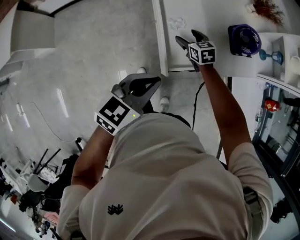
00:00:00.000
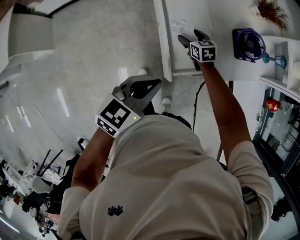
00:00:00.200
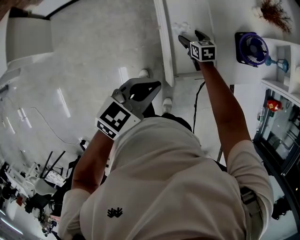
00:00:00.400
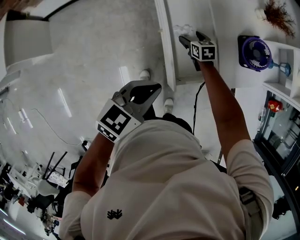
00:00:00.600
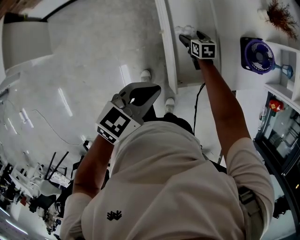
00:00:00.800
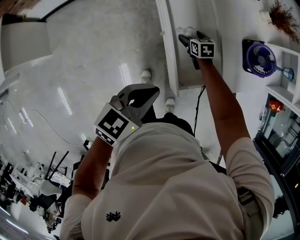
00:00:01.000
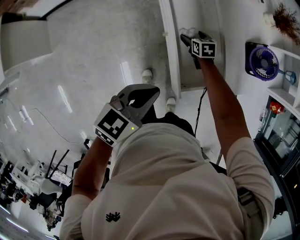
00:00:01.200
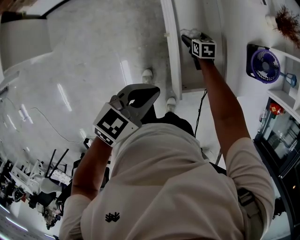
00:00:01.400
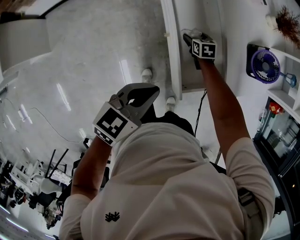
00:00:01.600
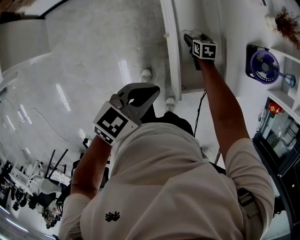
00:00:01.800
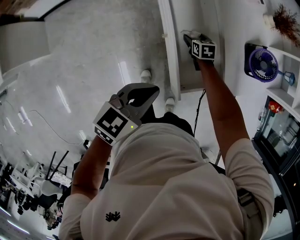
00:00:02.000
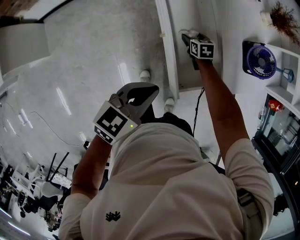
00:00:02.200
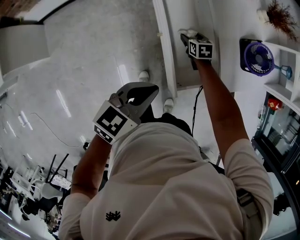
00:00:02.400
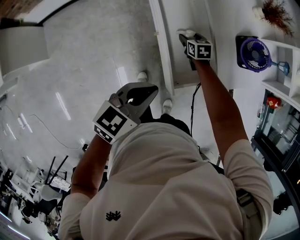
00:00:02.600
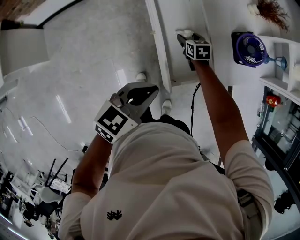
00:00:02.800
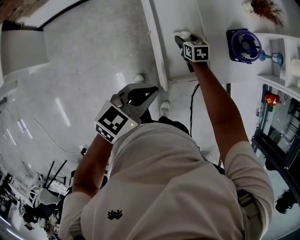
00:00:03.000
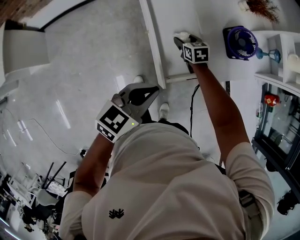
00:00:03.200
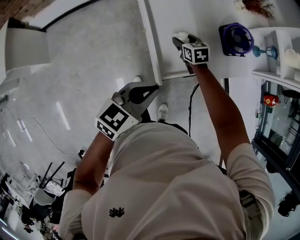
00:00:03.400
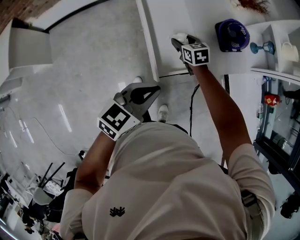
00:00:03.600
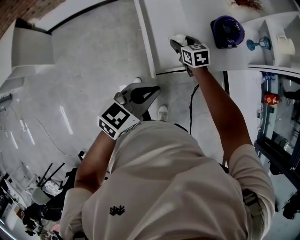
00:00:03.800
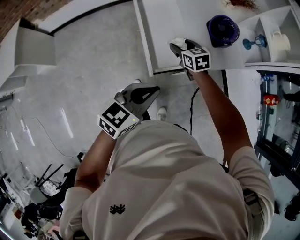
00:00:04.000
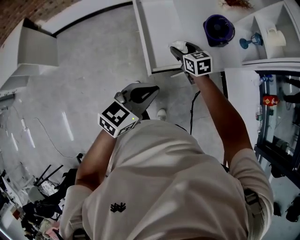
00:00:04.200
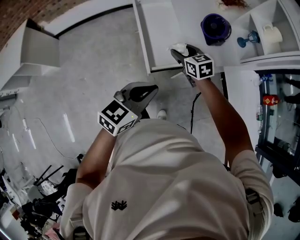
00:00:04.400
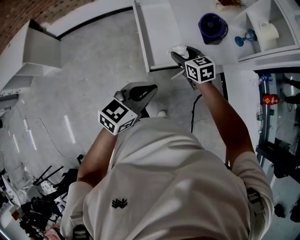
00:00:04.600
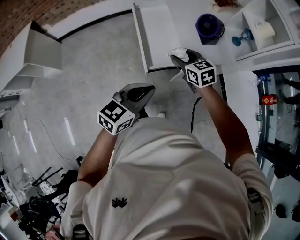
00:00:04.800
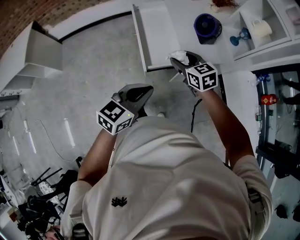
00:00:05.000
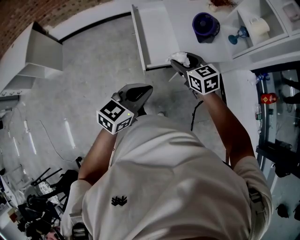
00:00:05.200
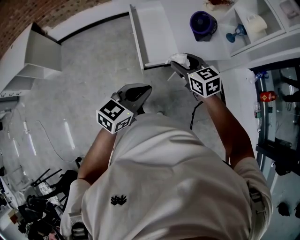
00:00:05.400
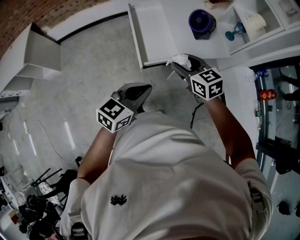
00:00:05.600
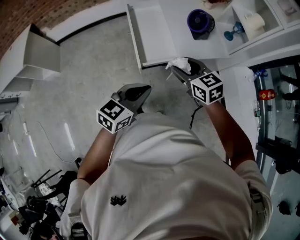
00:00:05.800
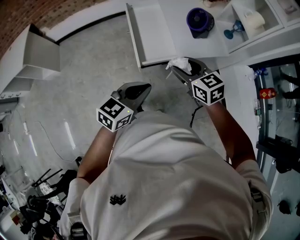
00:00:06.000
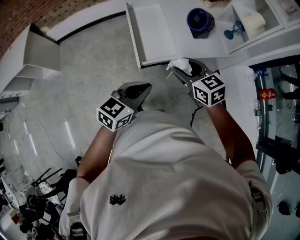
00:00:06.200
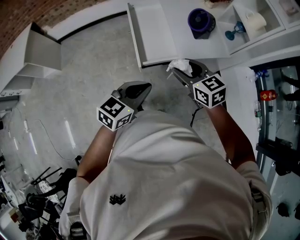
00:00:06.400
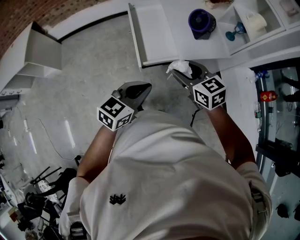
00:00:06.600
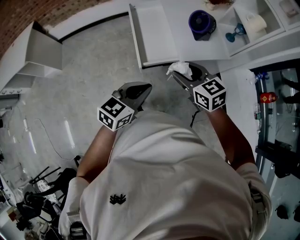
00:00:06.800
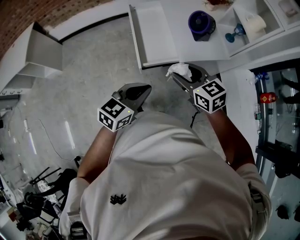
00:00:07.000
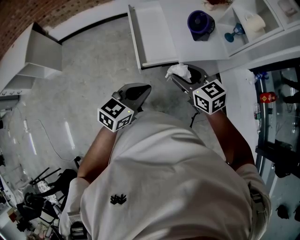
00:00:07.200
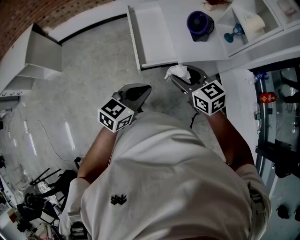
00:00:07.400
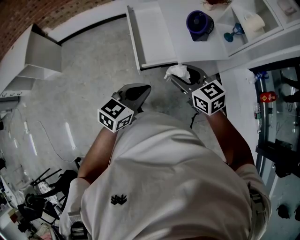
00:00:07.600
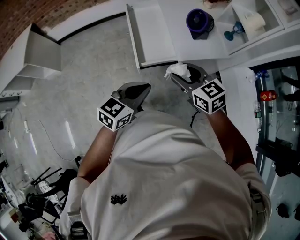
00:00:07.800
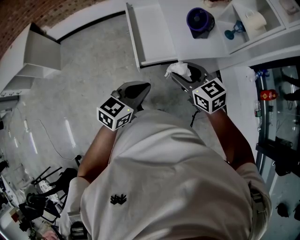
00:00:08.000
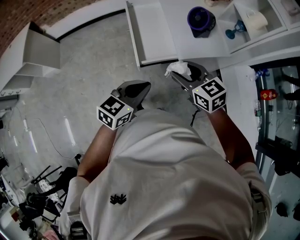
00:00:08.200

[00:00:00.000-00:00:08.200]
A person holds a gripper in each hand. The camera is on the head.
00:00:00.000 to 00:00:01.600: The right gripper goes approximately 20 cm downward and forward, and swivels roughly 20 degrees. Meanwhile the left gripper heads to the left, forward and downward, covering some 15 cm.
00:00:01.600 to 00:00:03.200: The right gripper shifts roughly 15 cm upward, backward and to the right, while the left gripper is displaced to the right by about 10 cm.
00:00:03.200 to 00:00:05.000: The right gripper shifts roughly 35 cm backward, upward and to the right, and swivels about 20 degrees; the left gripper is displaced backward, to the right and upward by about 20 cm.
00:00:05.000 to 00:00:06.600: The right gripper travels backward by roughly 10 cm.
00:00:06.600 to 00:00:08.200: The grippers make only small movements.

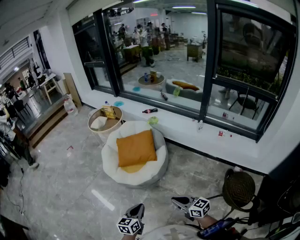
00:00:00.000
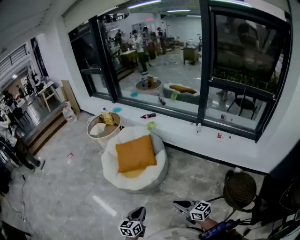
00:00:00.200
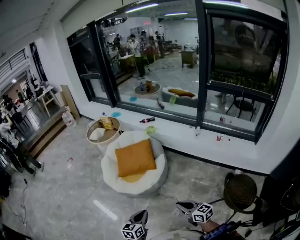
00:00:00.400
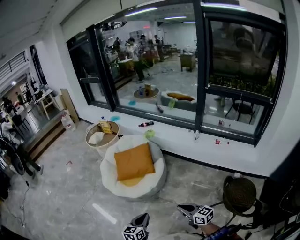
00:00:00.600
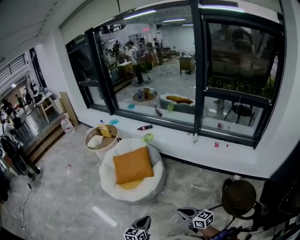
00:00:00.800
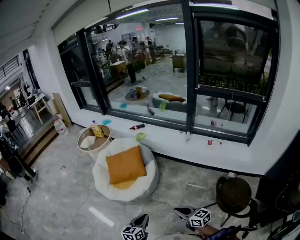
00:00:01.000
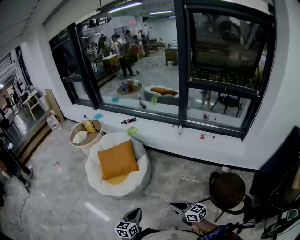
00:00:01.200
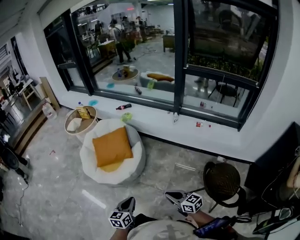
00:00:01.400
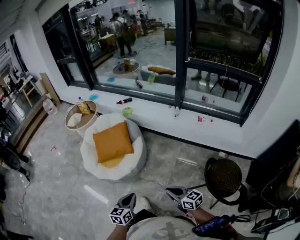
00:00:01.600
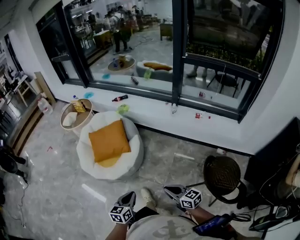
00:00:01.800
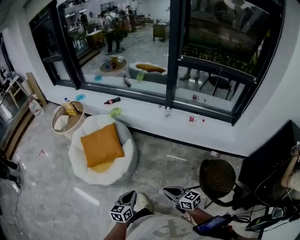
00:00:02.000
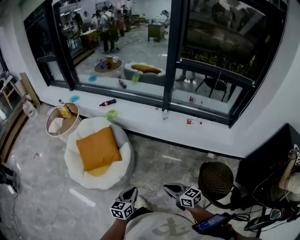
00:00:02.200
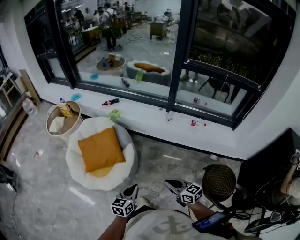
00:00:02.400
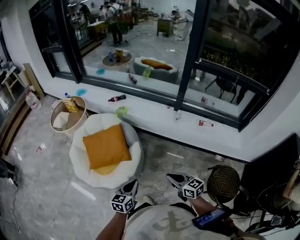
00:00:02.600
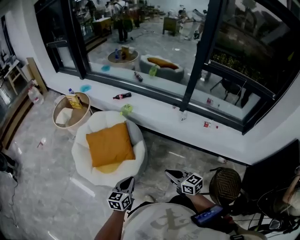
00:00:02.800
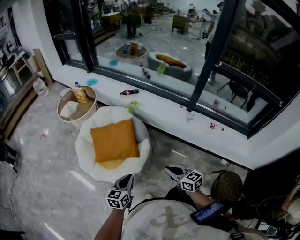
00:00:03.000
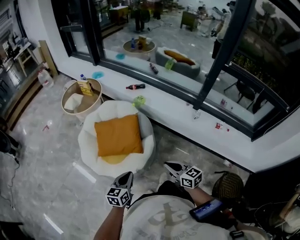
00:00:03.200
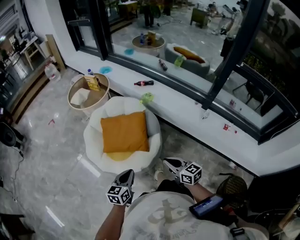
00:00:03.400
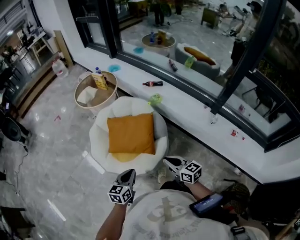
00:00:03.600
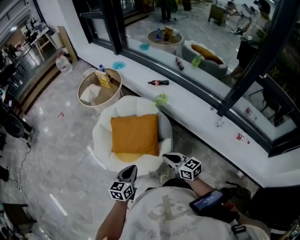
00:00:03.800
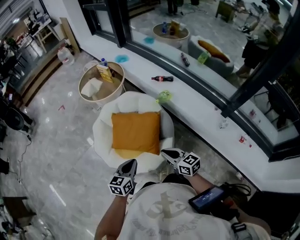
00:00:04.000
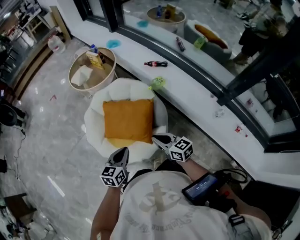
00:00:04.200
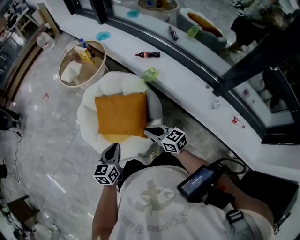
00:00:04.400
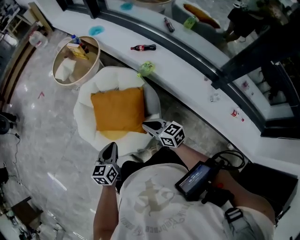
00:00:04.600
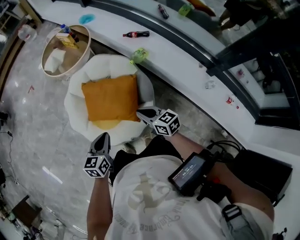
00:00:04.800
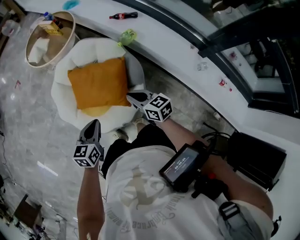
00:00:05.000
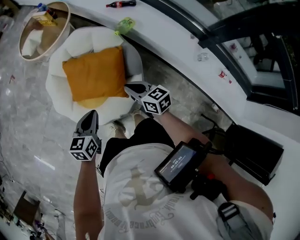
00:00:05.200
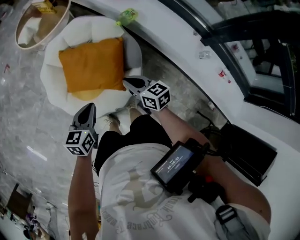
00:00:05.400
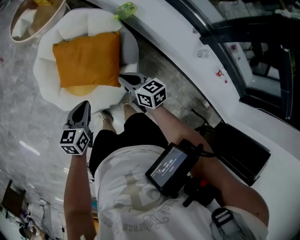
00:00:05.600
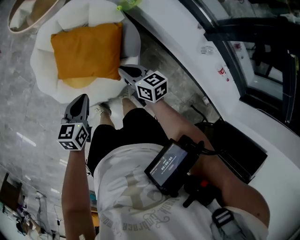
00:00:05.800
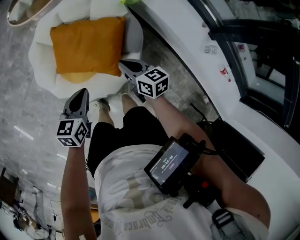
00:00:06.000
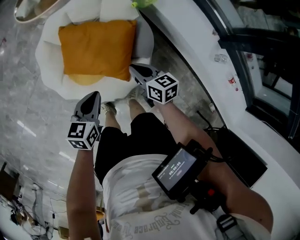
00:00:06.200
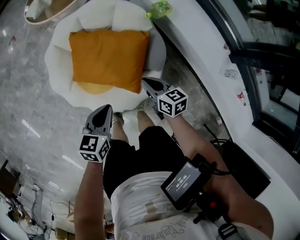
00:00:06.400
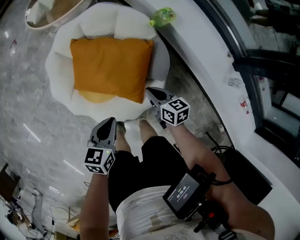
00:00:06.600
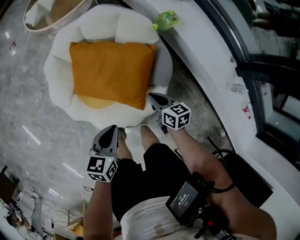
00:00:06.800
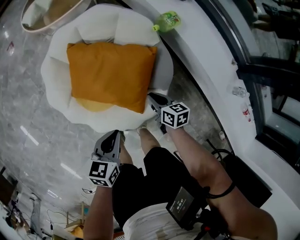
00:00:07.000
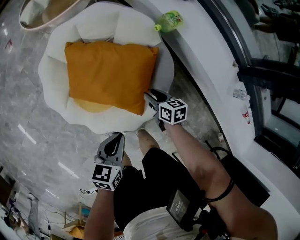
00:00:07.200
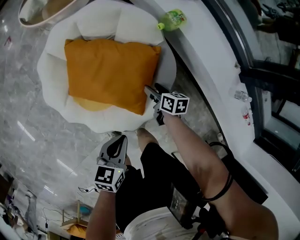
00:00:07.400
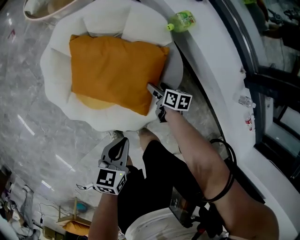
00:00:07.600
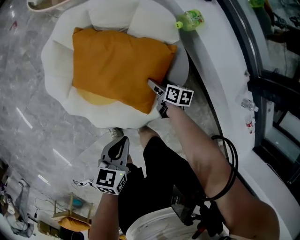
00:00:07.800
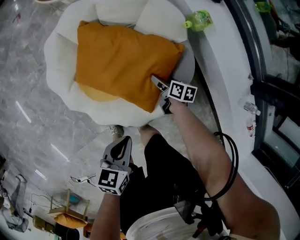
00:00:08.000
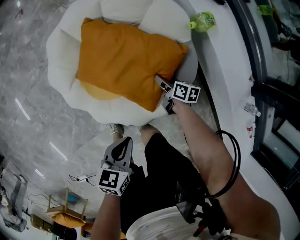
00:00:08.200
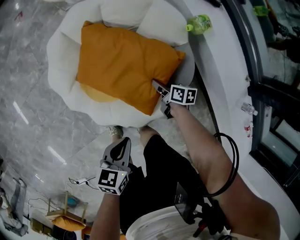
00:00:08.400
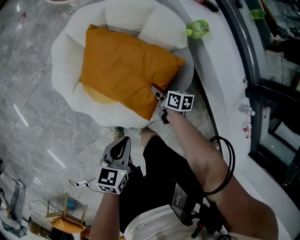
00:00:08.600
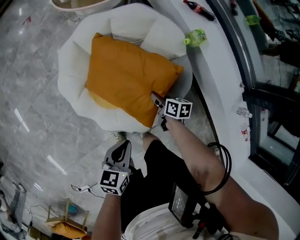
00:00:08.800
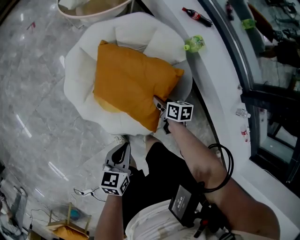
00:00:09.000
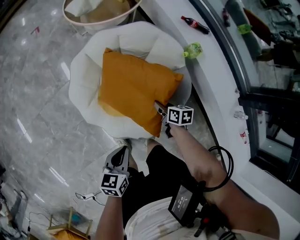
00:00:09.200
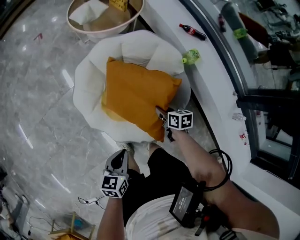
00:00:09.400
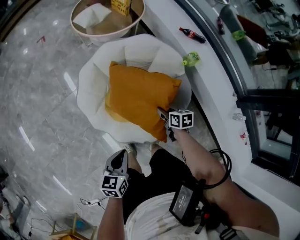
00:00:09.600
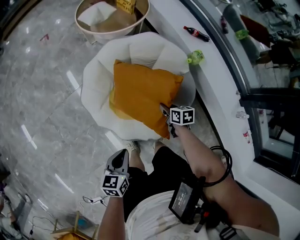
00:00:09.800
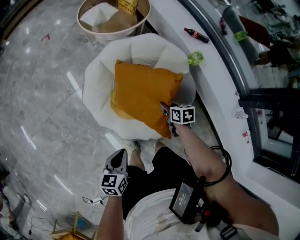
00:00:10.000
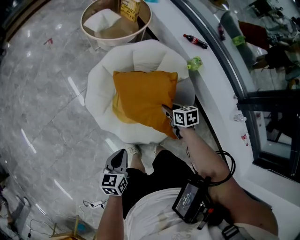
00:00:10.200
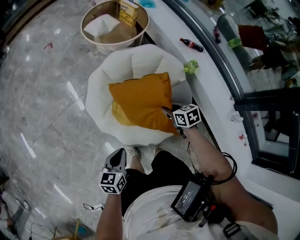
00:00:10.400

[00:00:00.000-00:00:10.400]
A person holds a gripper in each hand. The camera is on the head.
00:00:00.000 to 00:00:01.400: Both grippers travel together to the right, approximately 15 cm.
00:00:01.400 to 00:00:03.000: Both grippers move forward, roughly 30 cm.
00:00:03.000 to 00:00:04.400: The two grippers go roughly 25 cm forward. The left gripper turns by approximately 20 degrees. The right gripper rotates some 20 degrees.
00:00:04.400 to 00:00:06.000: The right gripper heads downward and forward, covering approximately 15 cm, while the left gripper goes roughly 10 cm downward.
00:00:06.000 to 00:00:07.400: The left gripper is displaced downward by approximately 10 cm, while the right gripper shifts some 25 cm downward, changes its angle by some 20 degrees, and opens.
00:00:07.400 to 00:00:09.000: The left gripper travels to the left by about 10 cm; the right gripper moves to the left and upward, approximately 10 cm, and closes.
00:00:09.000 to 00:00:10.400: The left gripper travels to the left and upward by about 15 cm, while the right gripper goes roughly 20 cm upward and to the left, and swivels roughly 30 degrees.

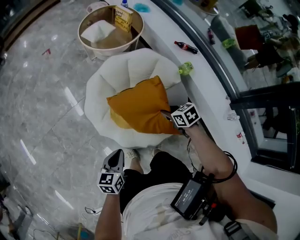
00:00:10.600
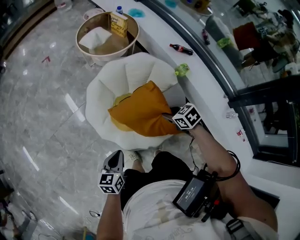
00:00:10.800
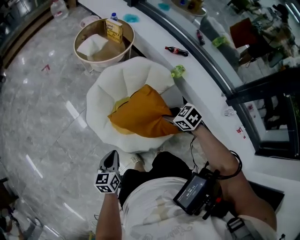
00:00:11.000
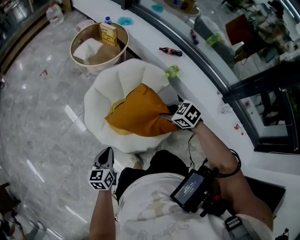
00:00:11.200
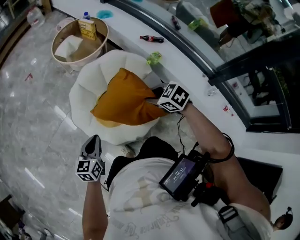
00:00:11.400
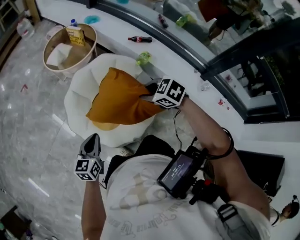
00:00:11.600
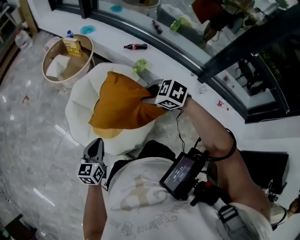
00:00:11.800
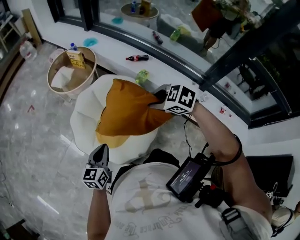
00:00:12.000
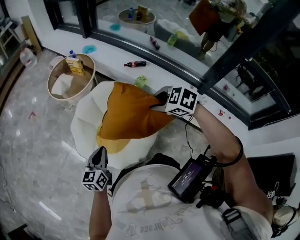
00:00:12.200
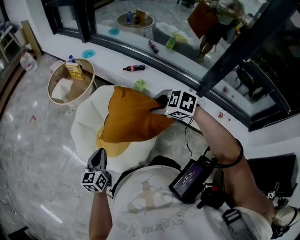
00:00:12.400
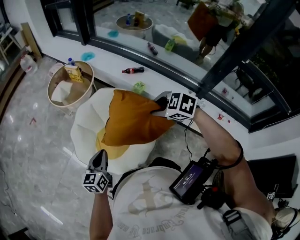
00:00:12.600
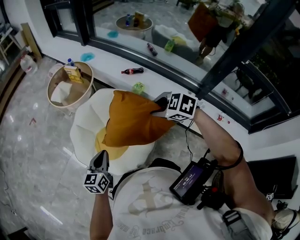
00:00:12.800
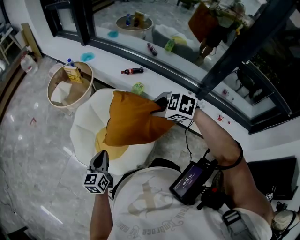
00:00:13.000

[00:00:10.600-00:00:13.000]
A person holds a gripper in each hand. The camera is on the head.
00:00:10.600 to 00:00:11.800: The right gripper shifts some 20 cm upward, and rotates approximately 20 degrees; the left gripper shifts some 15 cm upward and to the right, and swivels some 20 degrees.
00:00:11.800 to 00:00:13.000: The left gripper is displaced to the right by roughly 5 cm. The right gripper shifts about 10 cm to the right and upward.

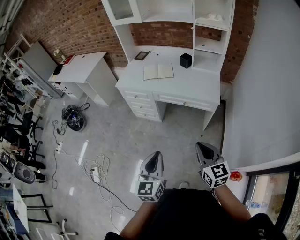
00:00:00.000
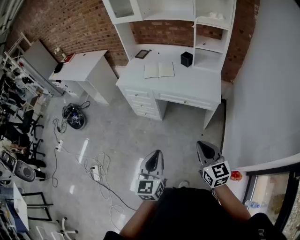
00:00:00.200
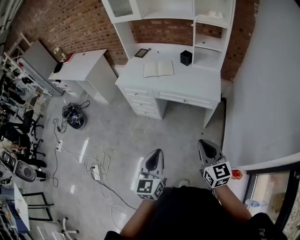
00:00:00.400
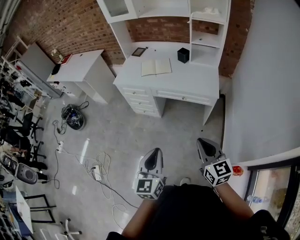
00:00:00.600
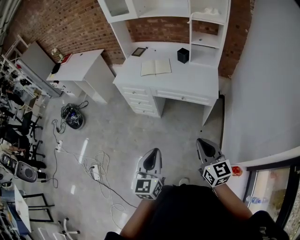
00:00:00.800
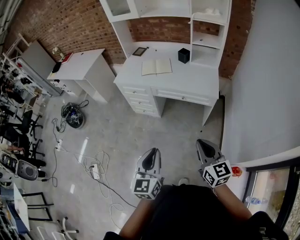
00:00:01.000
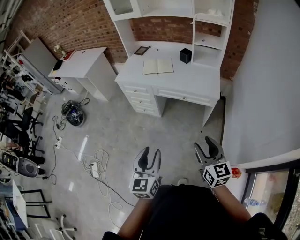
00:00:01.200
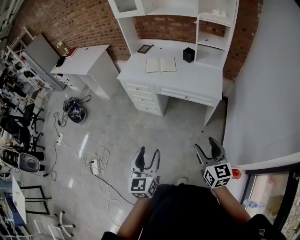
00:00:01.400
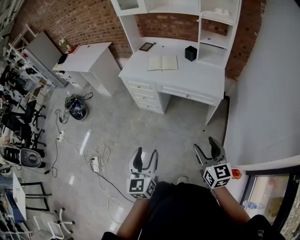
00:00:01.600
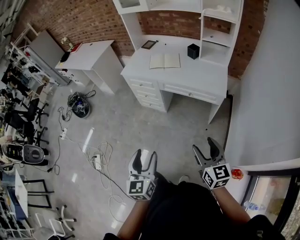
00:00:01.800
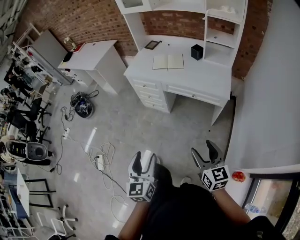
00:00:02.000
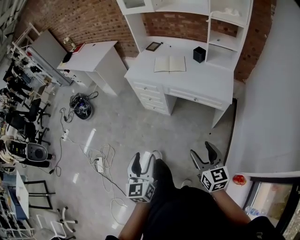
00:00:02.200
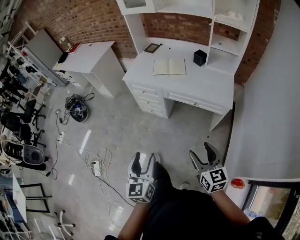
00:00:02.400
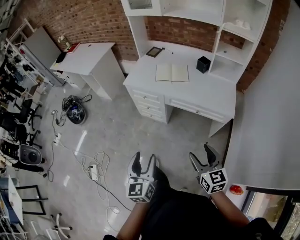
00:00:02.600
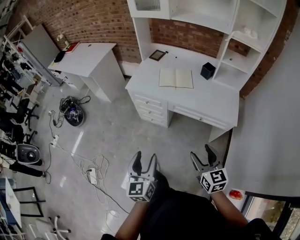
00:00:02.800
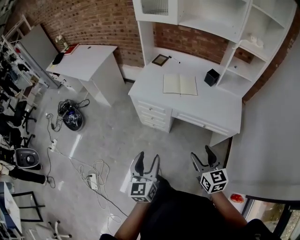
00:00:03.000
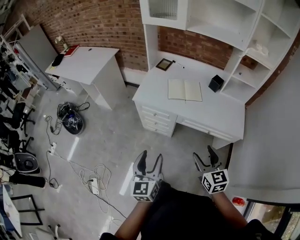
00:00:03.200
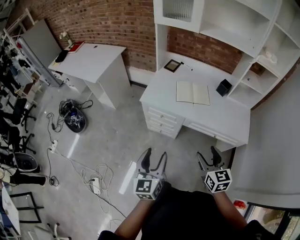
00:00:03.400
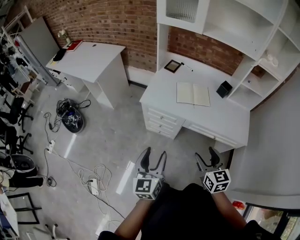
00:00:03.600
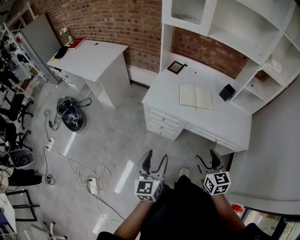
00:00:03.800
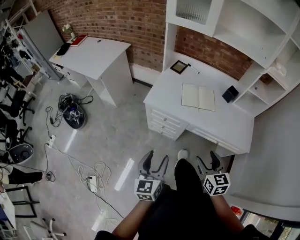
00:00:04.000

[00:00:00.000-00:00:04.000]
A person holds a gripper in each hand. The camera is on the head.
00:00:00.000 to 00:00:01.400: The right gripper opens up. Meanwhile the left gripper opens.
00:00:01.400 to 00:00:02.600: The grippers both shift forward and to the left by approximately 20 cm.
00:00:02.600 to 00:00:04.000: Both grippers travel together forward and to the left, roughly 30 cm.
